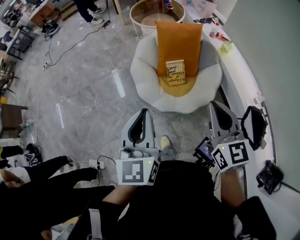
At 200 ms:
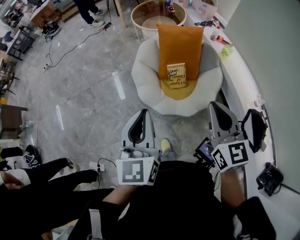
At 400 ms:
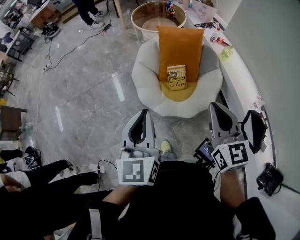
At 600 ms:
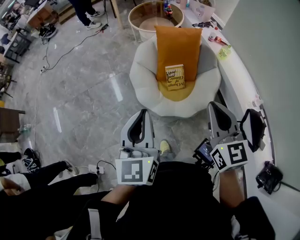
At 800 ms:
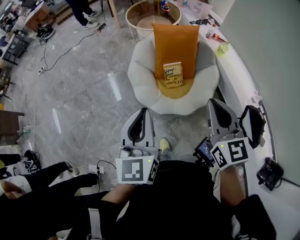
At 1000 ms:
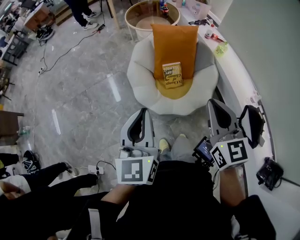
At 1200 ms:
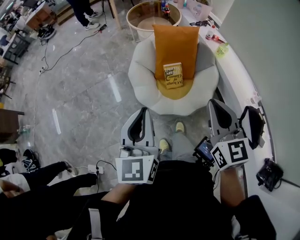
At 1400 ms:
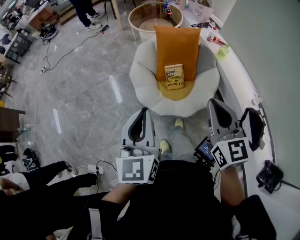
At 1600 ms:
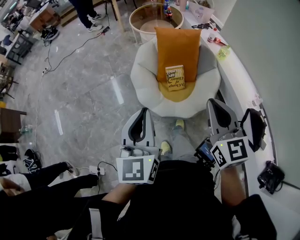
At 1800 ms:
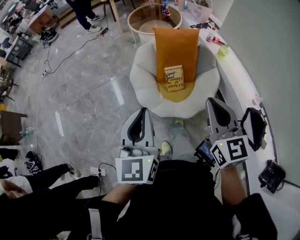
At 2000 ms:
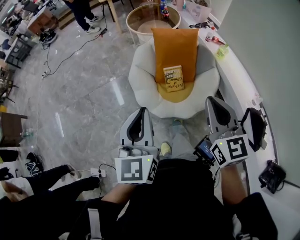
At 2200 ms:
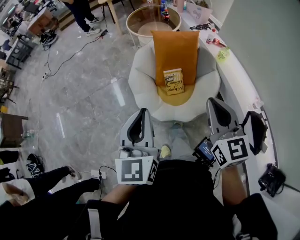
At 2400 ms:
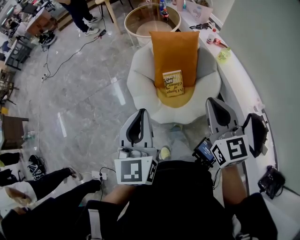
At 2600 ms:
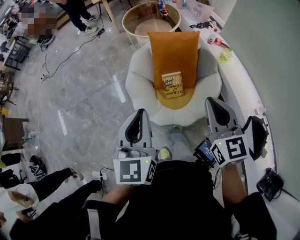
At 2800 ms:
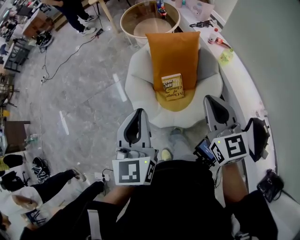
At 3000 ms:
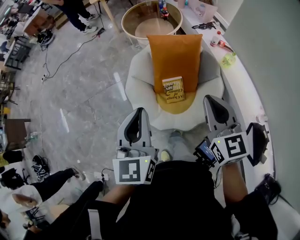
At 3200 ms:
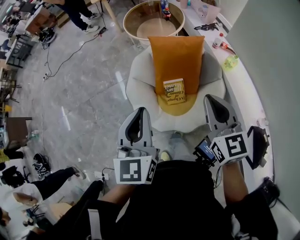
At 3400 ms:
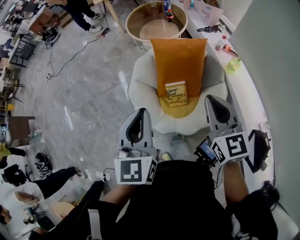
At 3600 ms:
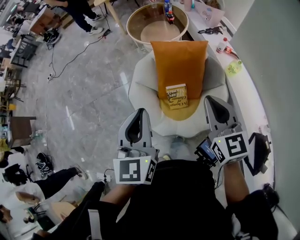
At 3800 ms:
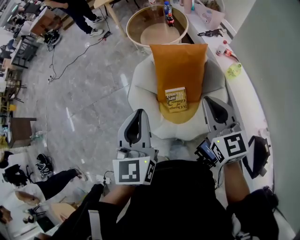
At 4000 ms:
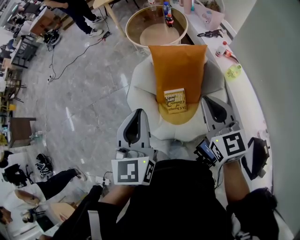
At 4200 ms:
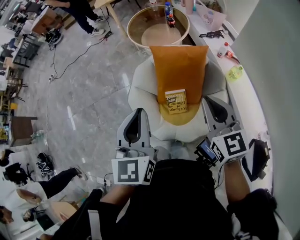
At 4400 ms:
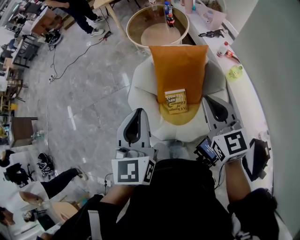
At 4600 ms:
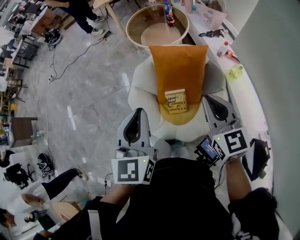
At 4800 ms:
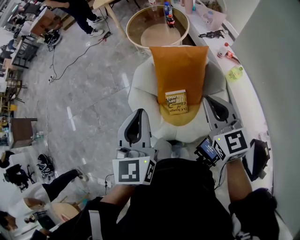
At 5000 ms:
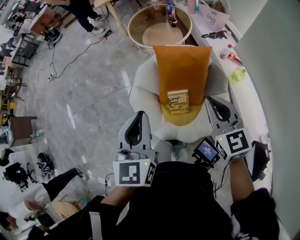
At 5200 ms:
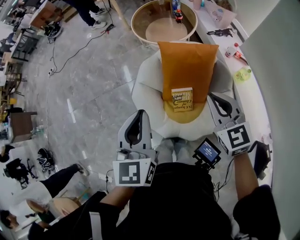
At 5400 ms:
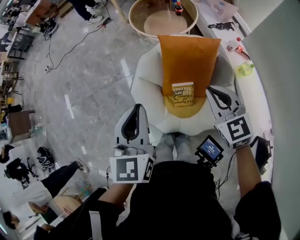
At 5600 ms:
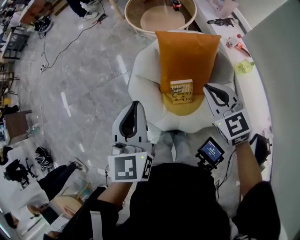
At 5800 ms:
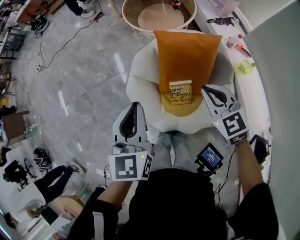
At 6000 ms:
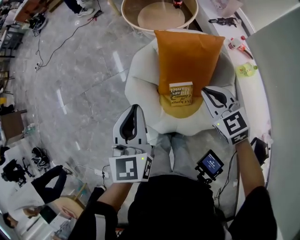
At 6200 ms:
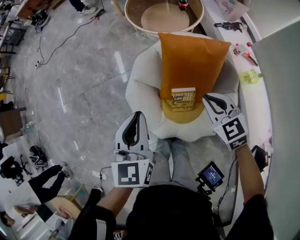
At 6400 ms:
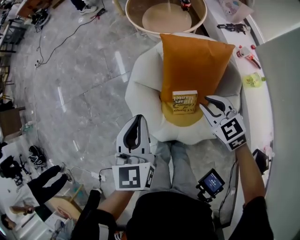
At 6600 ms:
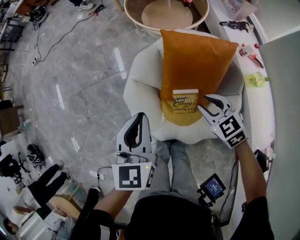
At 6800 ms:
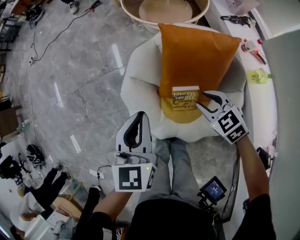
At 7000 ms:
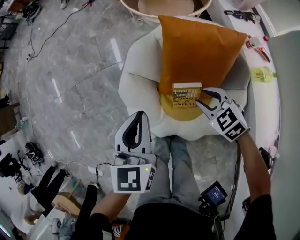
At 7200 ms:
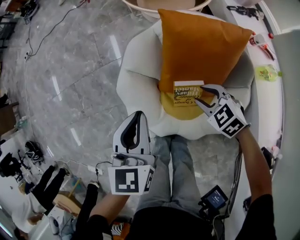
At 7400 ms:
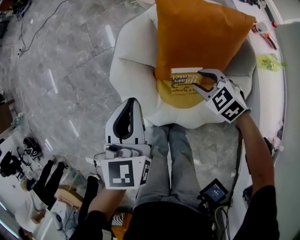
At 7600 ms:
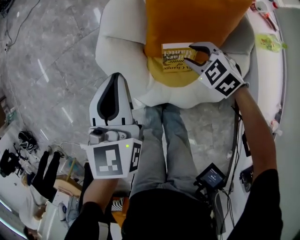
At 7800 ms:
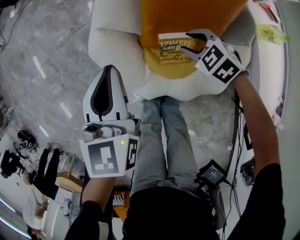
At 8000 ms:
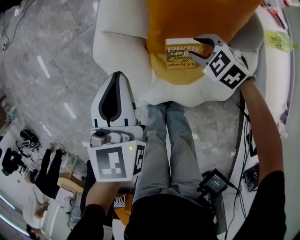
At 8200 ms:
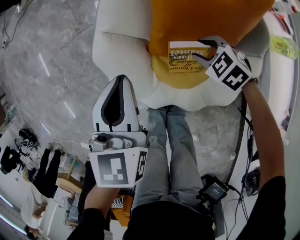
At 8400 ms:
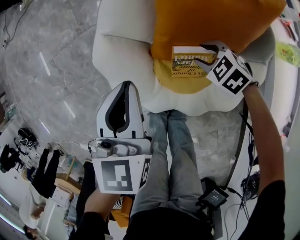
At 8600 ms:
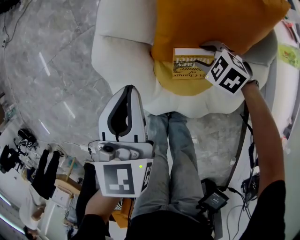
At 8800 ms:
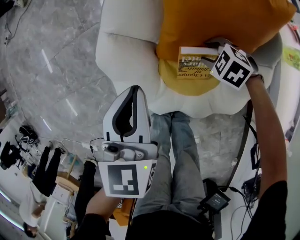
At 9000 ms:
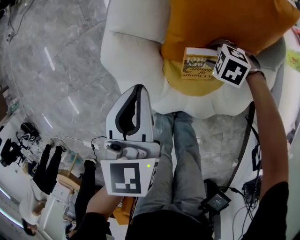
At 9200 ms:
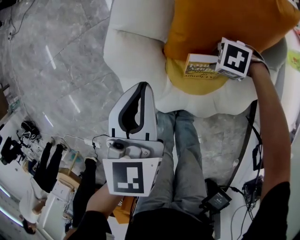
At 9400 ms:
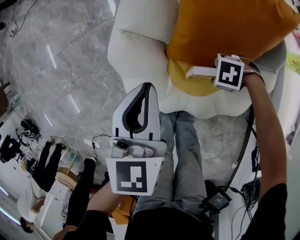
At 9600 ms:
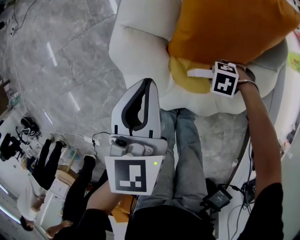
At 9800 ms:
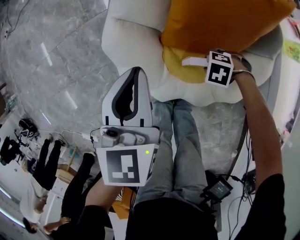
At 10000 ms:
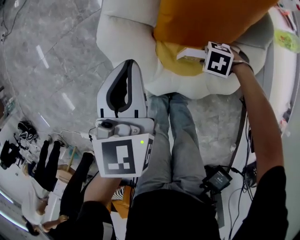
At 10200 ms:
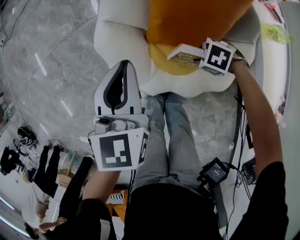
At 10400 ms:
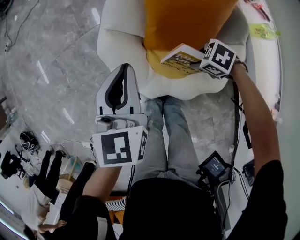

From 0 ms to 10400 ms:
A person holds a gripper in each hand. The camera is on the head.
From 0 ms to 1400 ms: The grippers move only a little.
From 1400 ms to 3000 ms: The right gripper goes approximately 20 cm forward. Meanwhile the left gripper shifts roughly 20 cm forward and to the right.
From 3000 ms to 4400 ms: The right gripper shifts some 10 cm forward. Meanwhile the left gripper moves forward and to the right, approximately 10 cm.
From 4400 ms to 6000 ms: The left gripper goes roughly 15 cm forward, downward and to the left; the right gripper moves downward and forward, roughly 20 cm, and rotates some 30 degrees.
From 6000 ms to 7400 ms: The two grippers go about 25 cm downward. The right gripper rotates about 30 degrees, and opens its fingers.
From 7400 ms to 9000 ms: The right gripper moves downward, roughly 15 cm, and rotates about 30 degrees; the left gripper moves downward, roughly 5 cm.
From 9000 ms to 10400 ms: The grippers both shift upward by some 10 cm. The right gripper swivels roughly 20 degrees.

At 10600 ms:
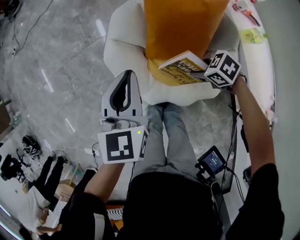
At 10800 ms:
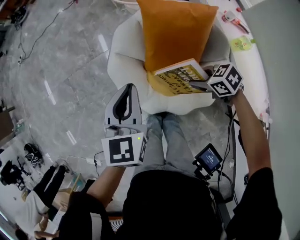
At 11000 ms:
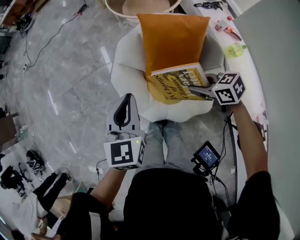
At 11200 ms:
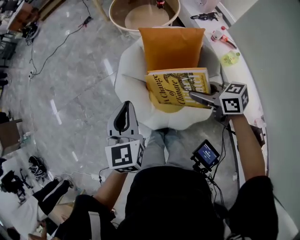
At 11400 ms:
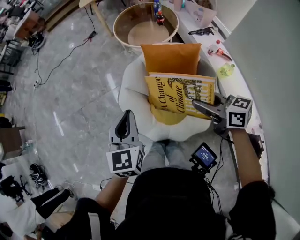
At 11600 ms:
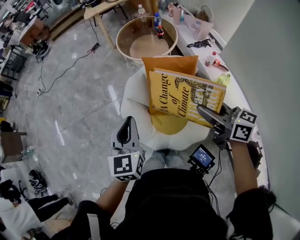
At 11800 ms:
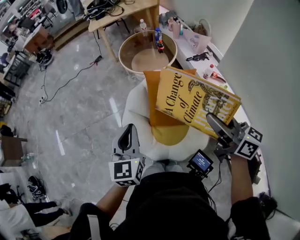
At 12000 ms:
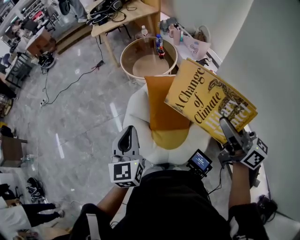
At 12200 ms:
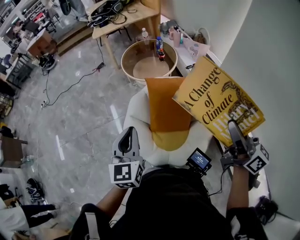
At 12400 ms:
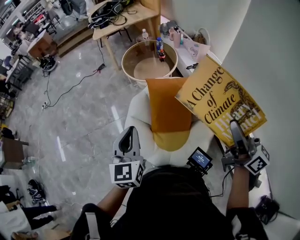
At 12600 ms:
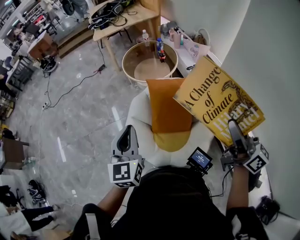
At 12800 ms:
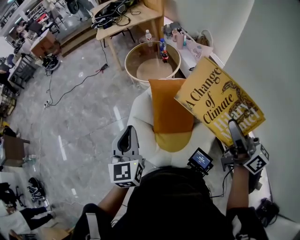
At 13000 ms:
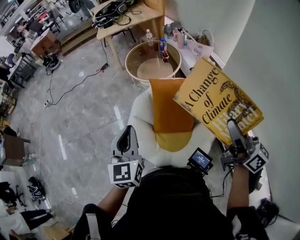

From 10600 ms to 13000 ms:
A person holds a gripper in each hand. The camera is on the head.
From 10600 ms to 11800 ms: The left gripper moves upward, approximately 20 cm; the right gripper moves upward, some 50 cm, and points its fingers approximately 60 degrees further upward.
From 11800 ms to 13000 ms: The right gripper travels upward and backward by some 10 cm, while the left gripper moves upward, about 5 cm.

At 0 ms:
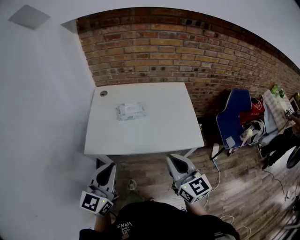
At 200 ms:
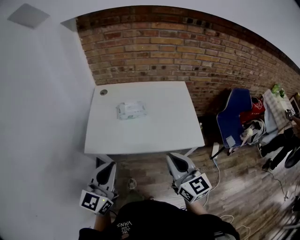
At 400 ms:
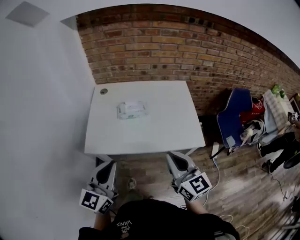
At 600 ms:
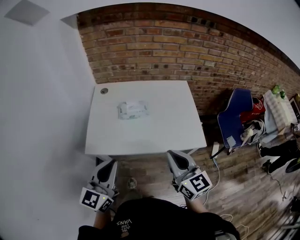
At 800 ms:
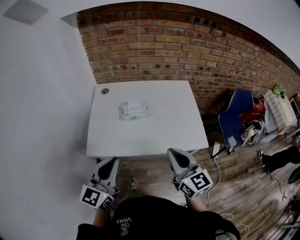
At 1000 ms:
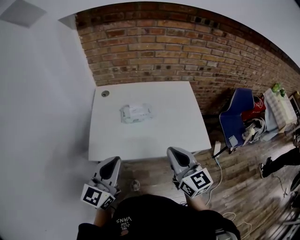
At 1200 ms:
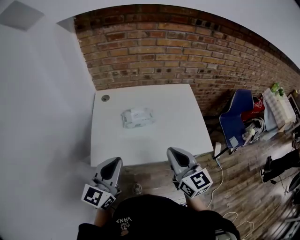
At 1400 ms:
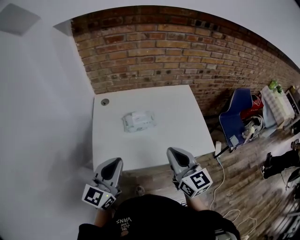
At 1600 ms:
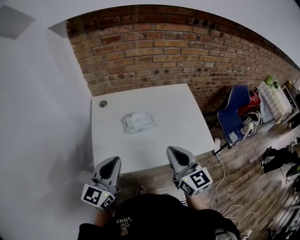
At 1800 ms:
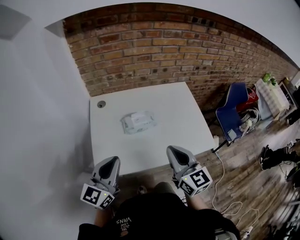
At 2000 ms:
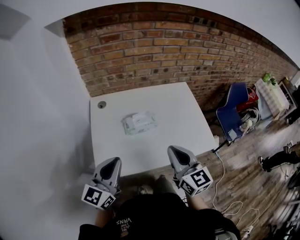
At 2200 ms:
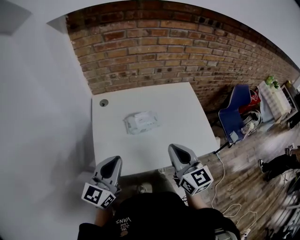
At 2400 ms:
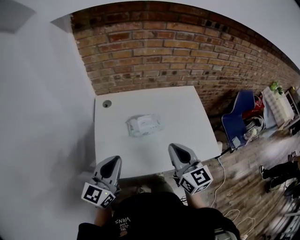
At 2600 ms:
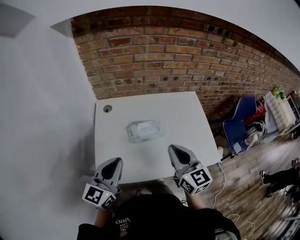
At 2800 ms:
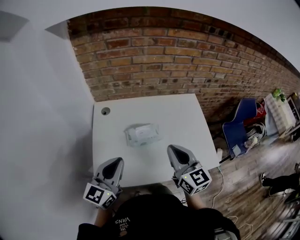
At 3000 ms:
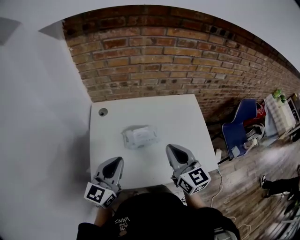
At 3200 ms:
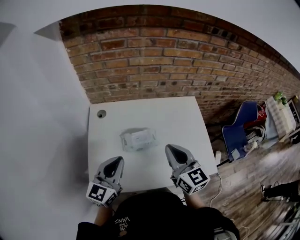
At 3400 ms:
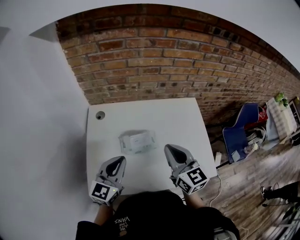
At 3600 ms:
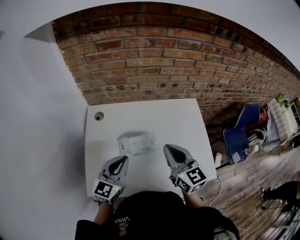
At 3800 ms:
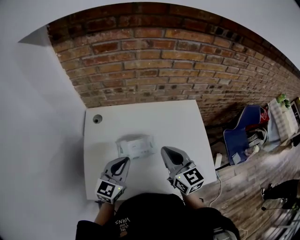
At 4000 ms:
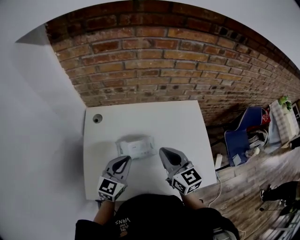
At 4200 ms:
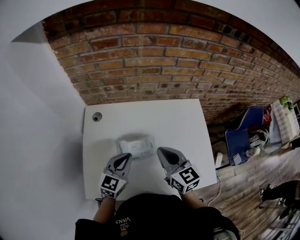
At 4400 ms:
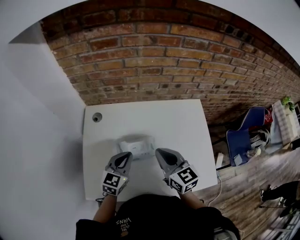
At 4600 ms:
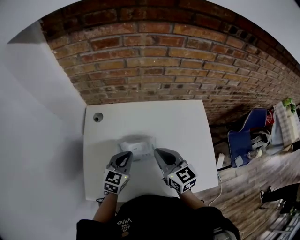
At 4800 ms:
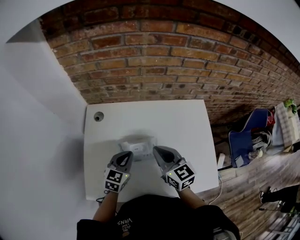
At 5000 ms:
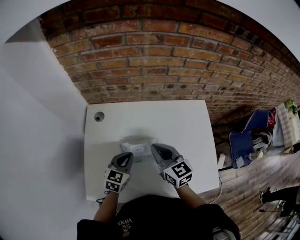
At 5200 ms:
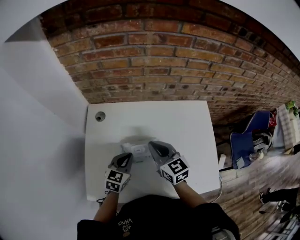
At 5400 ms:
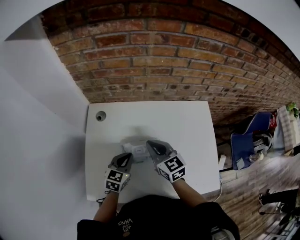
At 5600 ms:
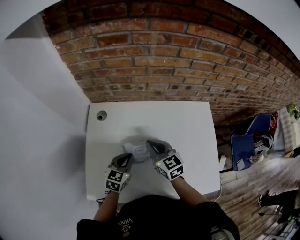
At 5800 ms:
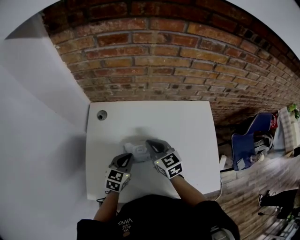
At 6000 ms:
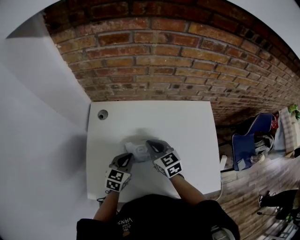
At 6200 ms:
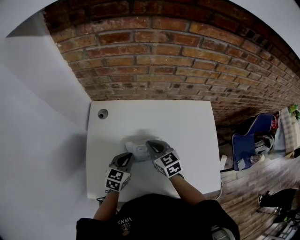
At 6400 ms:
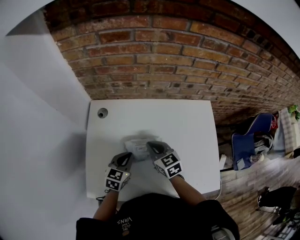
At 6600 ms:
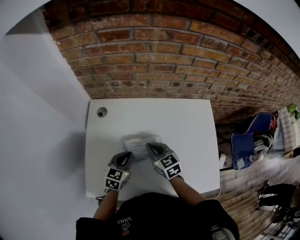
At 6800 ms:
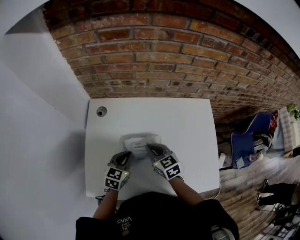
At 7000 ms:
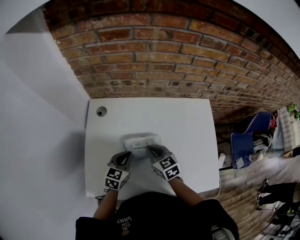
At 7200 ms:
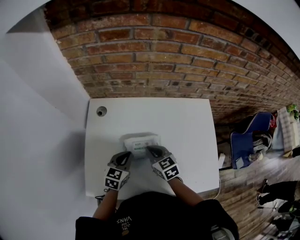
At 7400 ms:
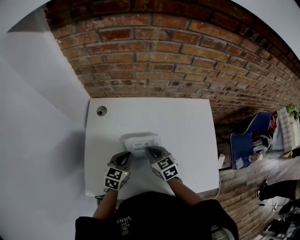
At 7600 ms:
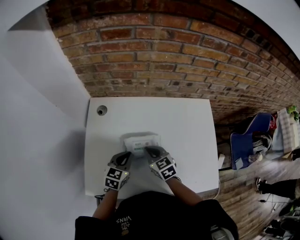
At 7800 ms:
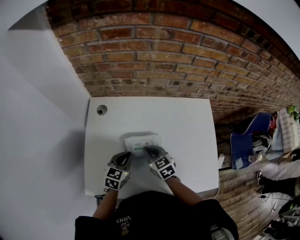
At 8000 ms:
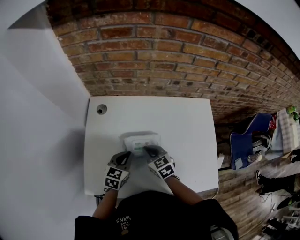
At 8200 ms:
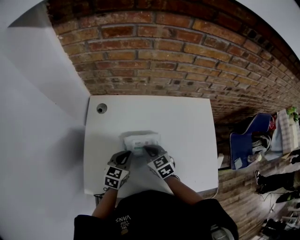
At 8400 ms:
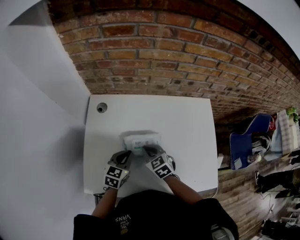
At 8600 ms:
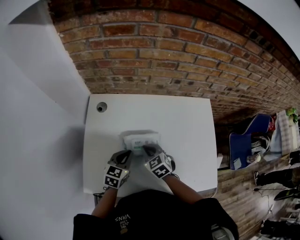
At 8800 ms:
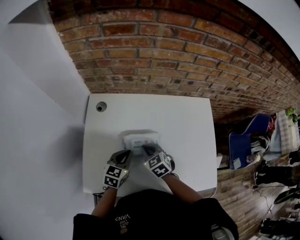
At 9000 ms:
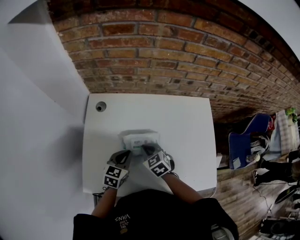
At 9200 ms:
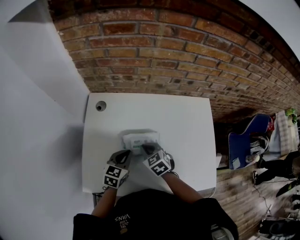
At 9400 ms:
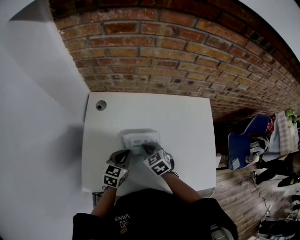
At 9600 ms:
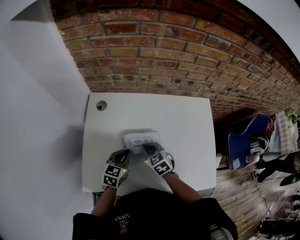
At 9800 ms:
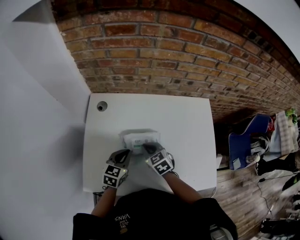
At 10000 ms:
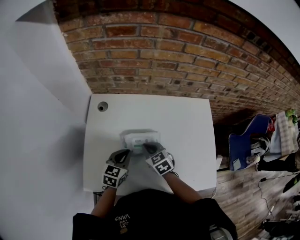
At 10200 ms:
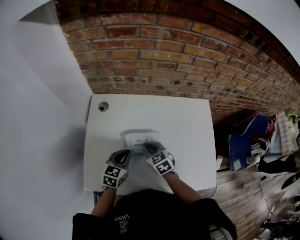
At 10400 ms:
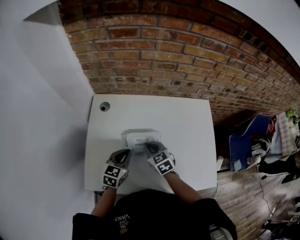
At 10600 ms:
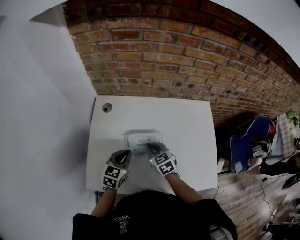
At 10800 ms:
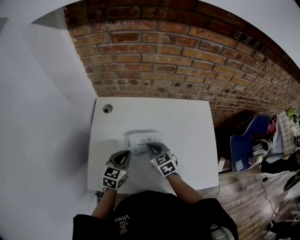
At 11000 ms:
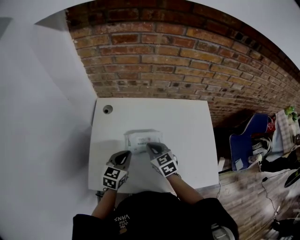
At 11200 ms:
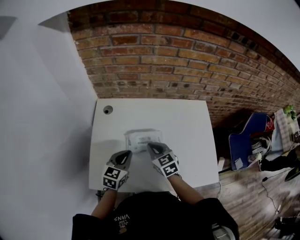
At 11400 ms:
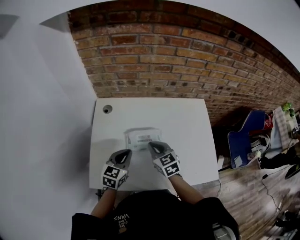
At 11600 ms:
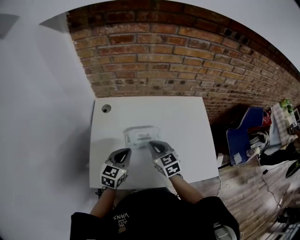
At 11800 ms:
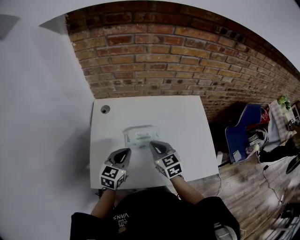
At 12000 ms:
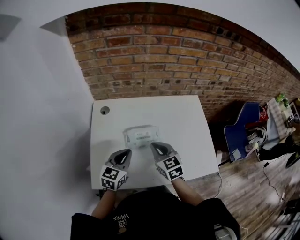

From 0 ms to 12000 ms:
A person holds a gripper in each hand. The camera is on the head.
From 0 ms to 1600 ms: Both grippers move forward and to the left, approximately 20 cm.
From 1600 ms to 3000 ms: The grippers both shift forward by some 10 cm.
From 3000 ms to 4400 ms: The right gripper goes some 15 cm forward and downward; the left gripper moves downward, forward and to the right, roughly 20 cm, and rotates about 20 degrees.
From 4400 ms to 6000 ms: The left gripper travels downward by about 5 cm; the right gripper shifts approximately 15 cm downward, forward and to the left.
From 6000 ms to 7600 ms: The right gripper ends up about 5 cm from where it was.
From 7600 ms to 10400 ms: The grippers stay close to where they were, moving slightly.
From 10400 ms to 12000 ms: Both grippers move upward and backward, approximately 10 cm.
